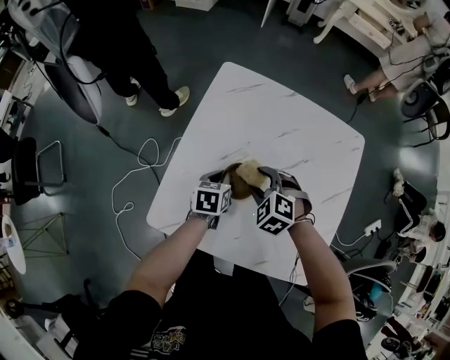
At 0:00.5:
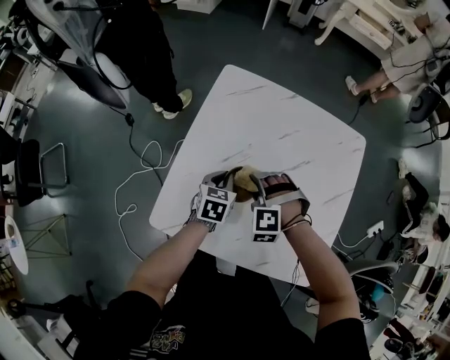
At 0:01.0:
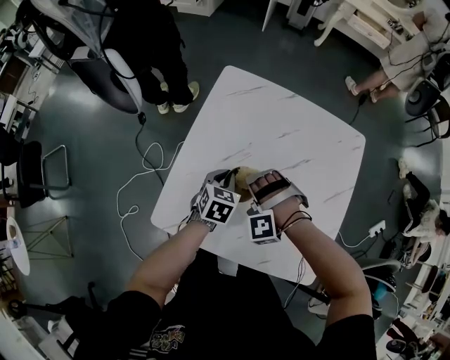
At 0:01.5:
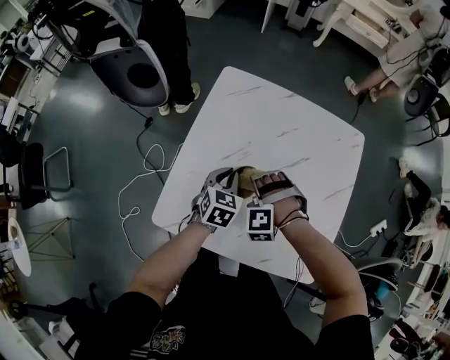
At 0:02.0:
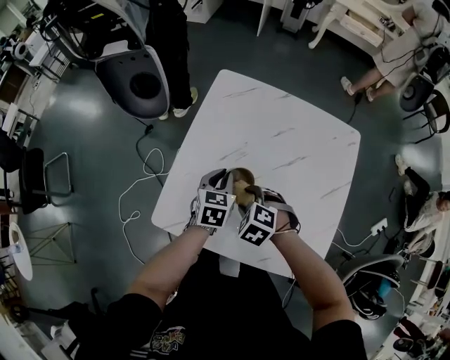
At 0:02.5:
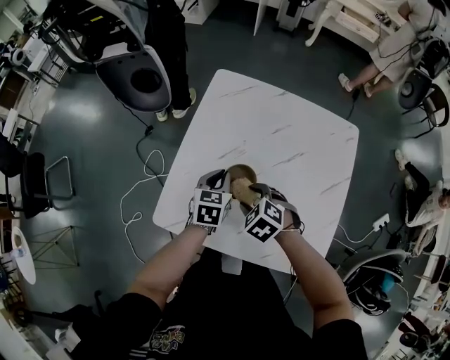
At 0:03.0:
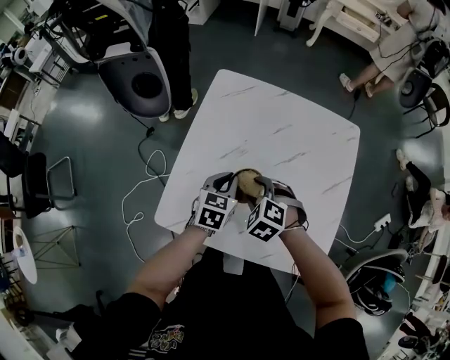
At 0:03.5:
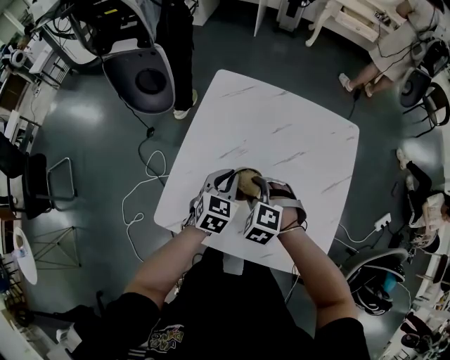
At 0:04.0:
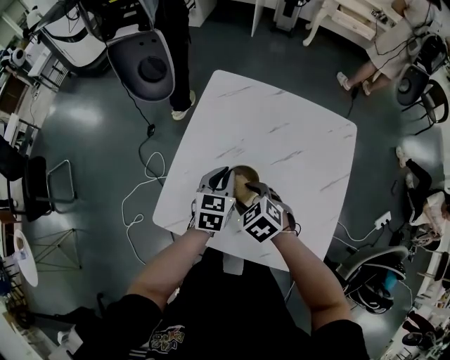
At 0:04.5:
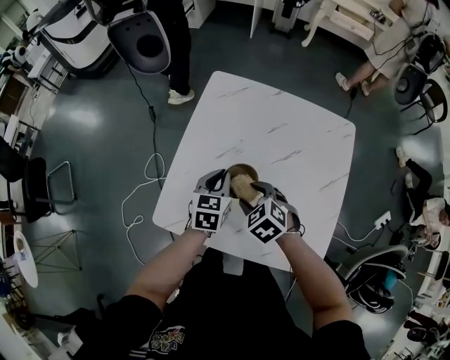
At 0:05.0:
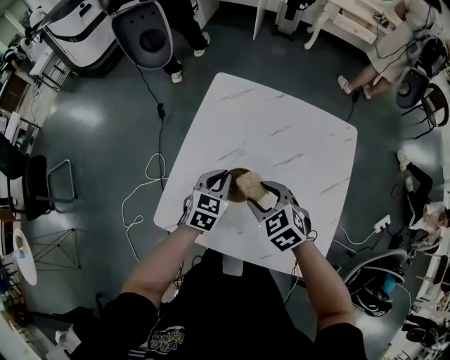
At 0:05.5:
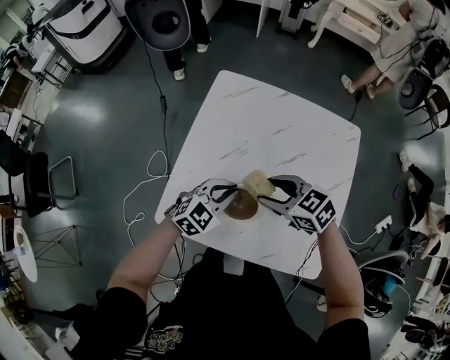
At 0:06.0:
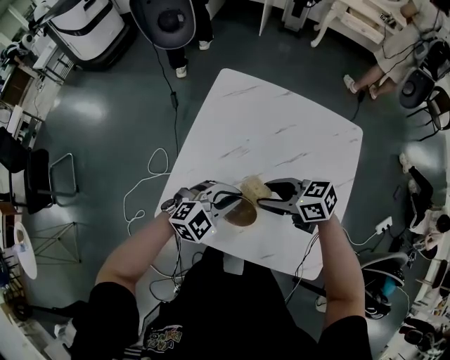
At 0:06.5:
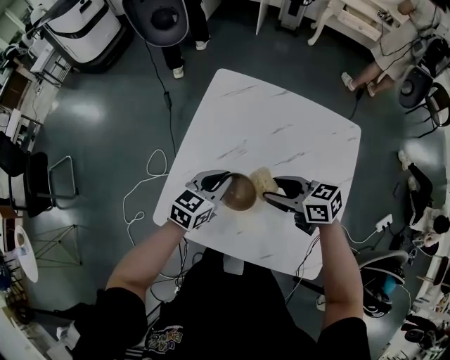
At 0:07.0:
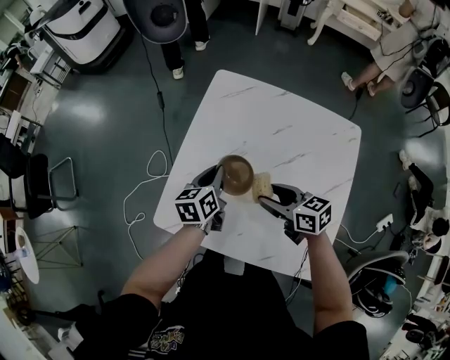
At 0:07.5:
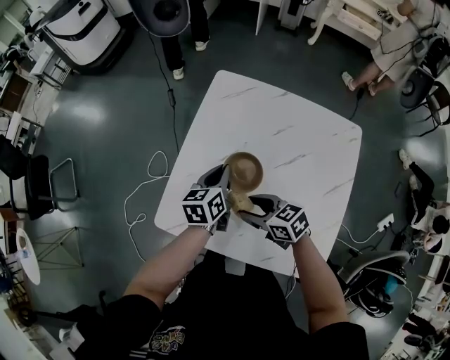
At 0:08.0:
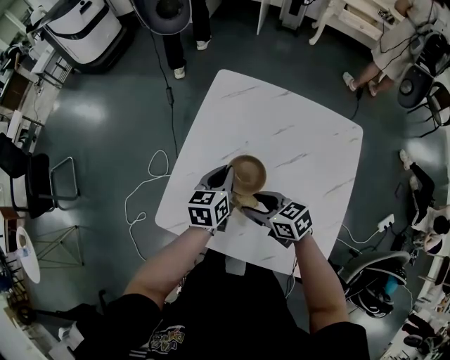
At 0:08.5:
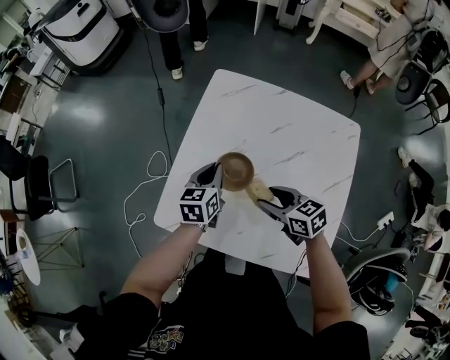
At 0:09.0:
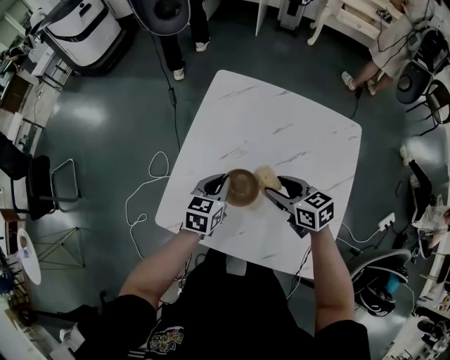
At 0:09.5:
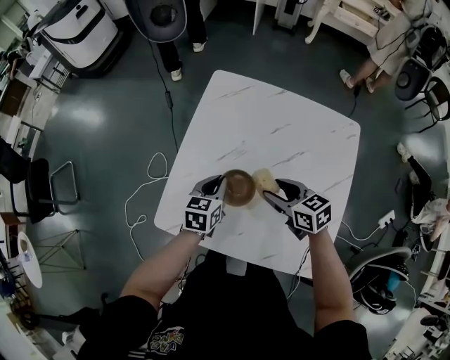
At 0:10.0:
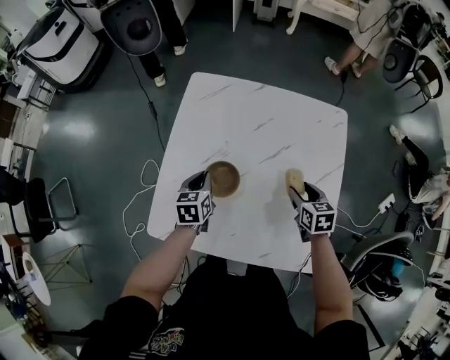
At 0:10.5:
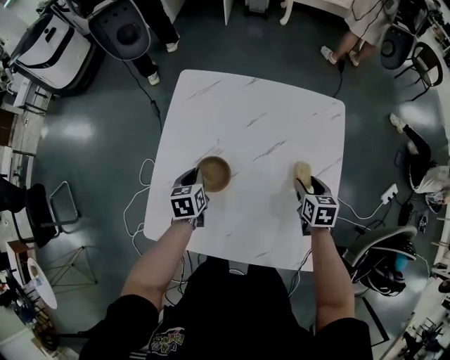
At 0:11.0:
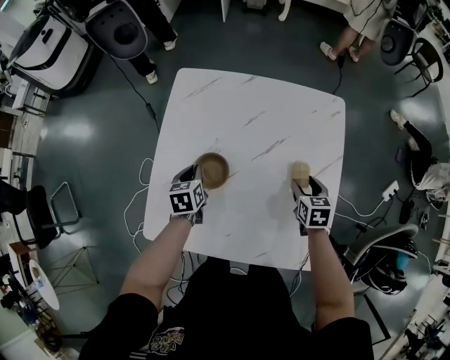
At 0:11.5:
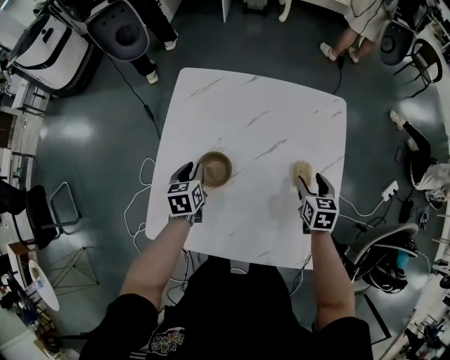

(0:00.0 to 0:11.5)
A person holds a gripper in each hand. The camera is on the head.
0:00.0 - 0:02.0: The left gripper moves upward, approximately 5 cm. Meanwhile the right gripper goes roughly 5 cm backward.
0:02.0 - 0:04.0: The right gripper changes its angle by about 20 degrees.
0:04.0 - 0:06.0: The left gripper shifts by about 10 cm, and twists about 50 degrees clockwise, seen from behind; the right gripper is displaced upward by roughly 5 cm, and tips its fingers upward by some 30 degrees.
0:06.0 - 0:07.5: The left gripper shifts by roughly 10 cm, and rotates around the line of its fingers by some 70 degrees, counterclockwise from behind. Meanwhile the right gripper is displaced downward by roughly 5 cm.
0:07.5 - 0:09.5: The right gripper heads to the right, covering roughly 10 cm. Meanwhile the left gripper ends up roughly 5 cm from where it was.
0:09.5 - 0:11.5: The left gripper is displaced forward and downward by approximately 10 cm. Meanwhile the right gripper moves to the right, some 20 cm, and changes its angle by some 50 degrees.

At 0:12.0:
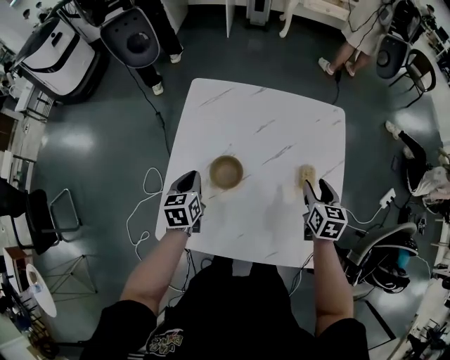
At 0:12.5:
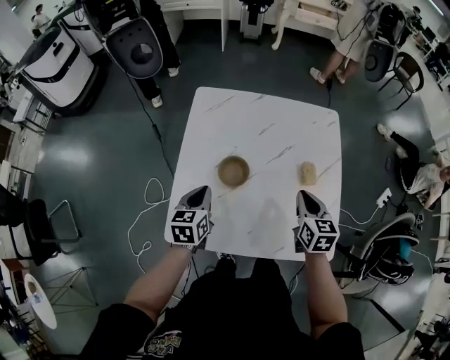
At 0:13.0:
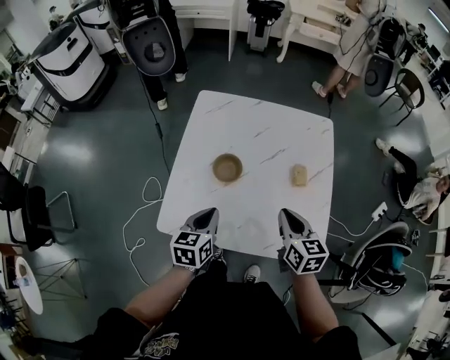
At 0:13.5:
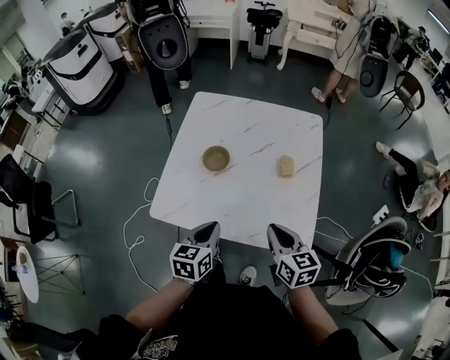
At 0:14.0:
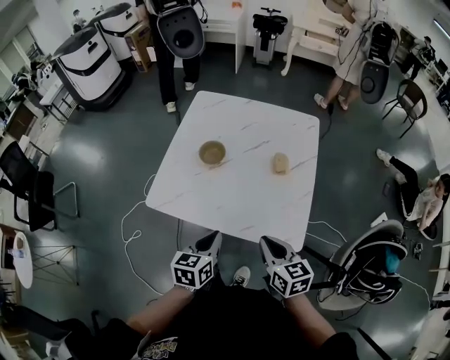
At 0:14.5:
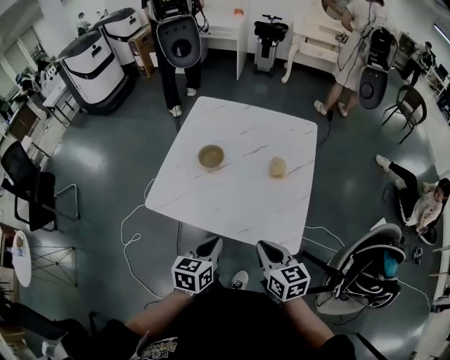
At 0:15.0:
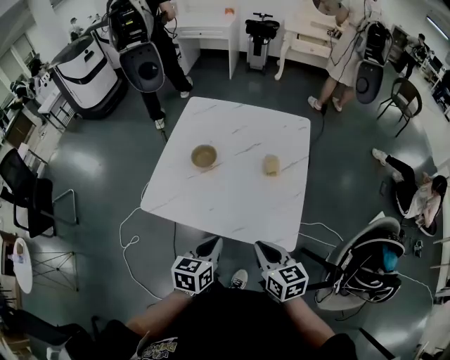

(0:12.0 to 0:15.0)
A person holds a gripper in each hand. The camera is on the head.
0:12.0 - 0:13.5: The left gripper goes roughly 30 cm backward and to the right. Meanwhile the right gripper is displaced backward by roughly 25 cm, changes its angle by approximately 20 degrees, and closes.
0:13.5 - 0:15.0: The right gripper shifts roughly 10 cm backward. Meanwhile the left gripper heads backward and to the right, covering some 10 cm.

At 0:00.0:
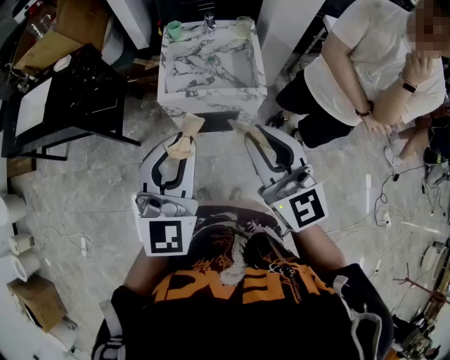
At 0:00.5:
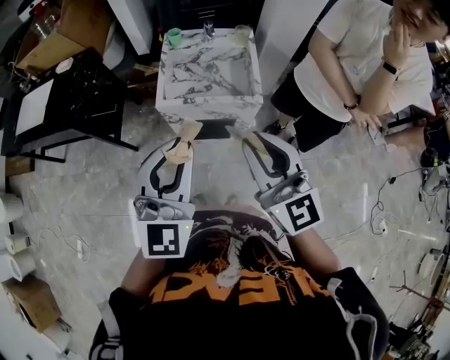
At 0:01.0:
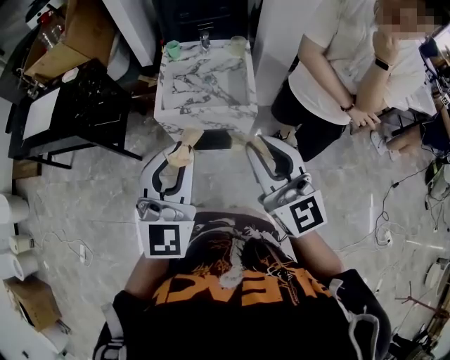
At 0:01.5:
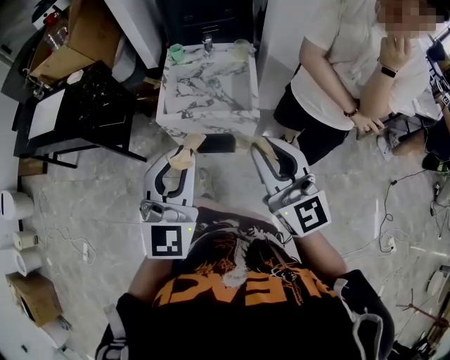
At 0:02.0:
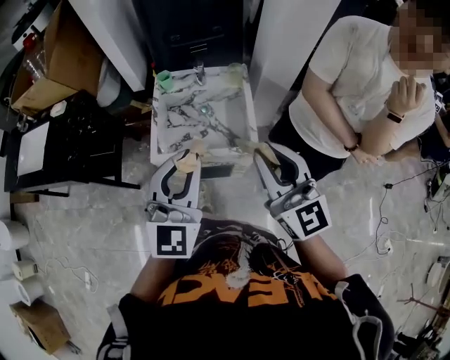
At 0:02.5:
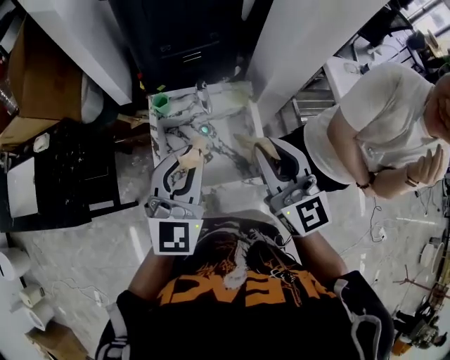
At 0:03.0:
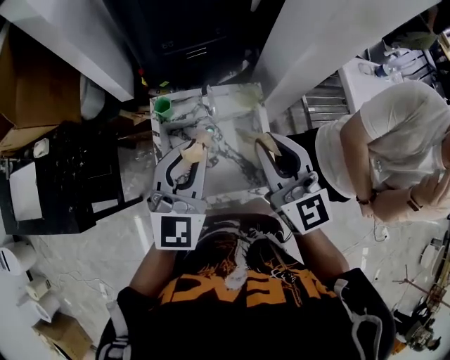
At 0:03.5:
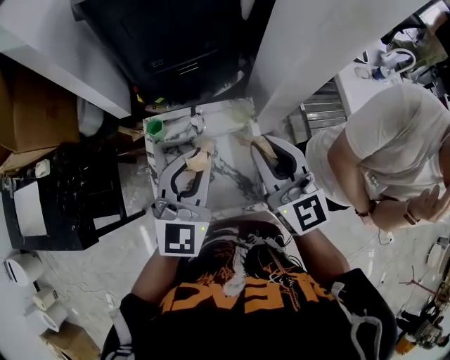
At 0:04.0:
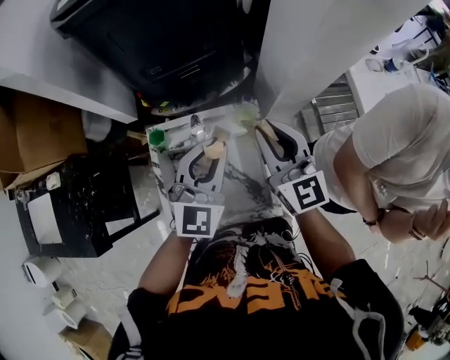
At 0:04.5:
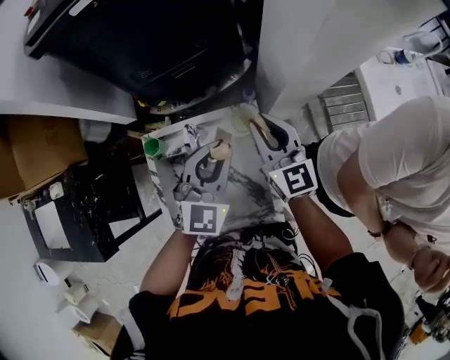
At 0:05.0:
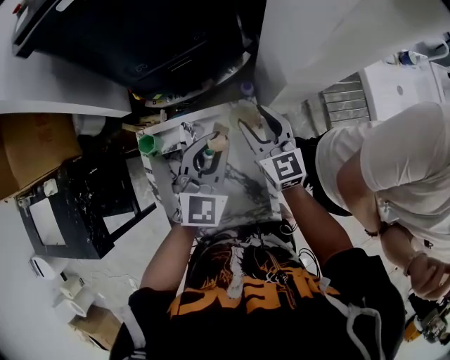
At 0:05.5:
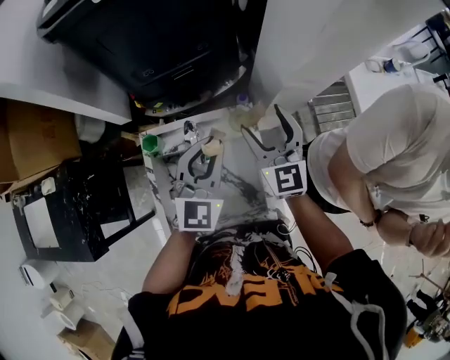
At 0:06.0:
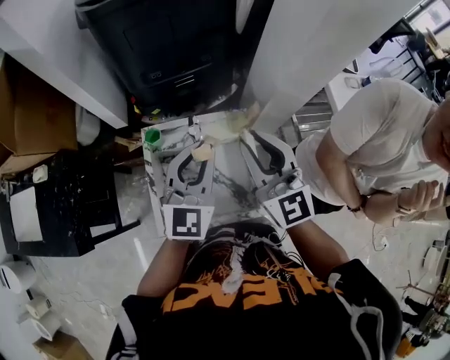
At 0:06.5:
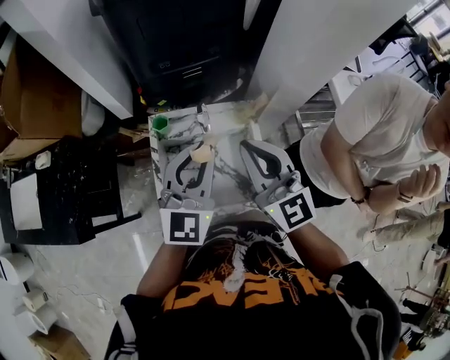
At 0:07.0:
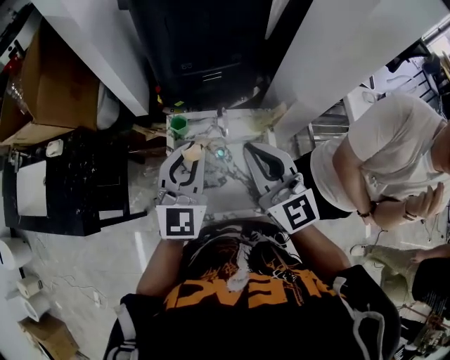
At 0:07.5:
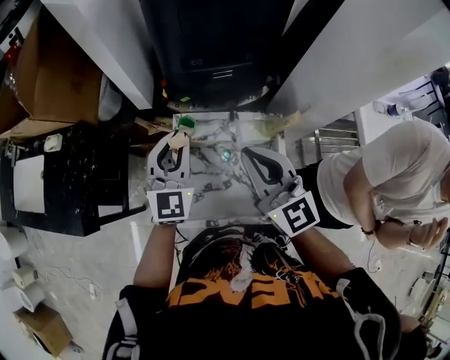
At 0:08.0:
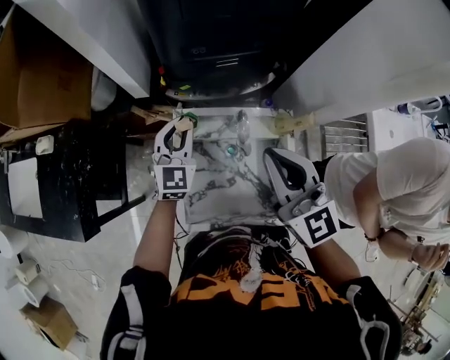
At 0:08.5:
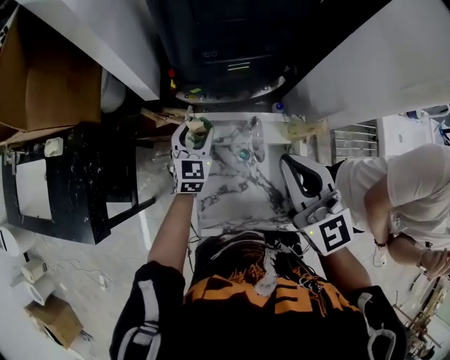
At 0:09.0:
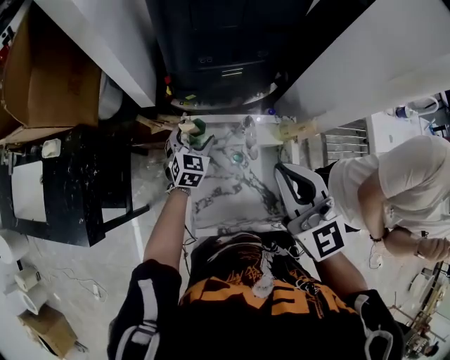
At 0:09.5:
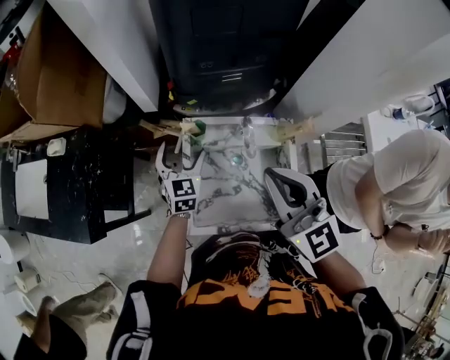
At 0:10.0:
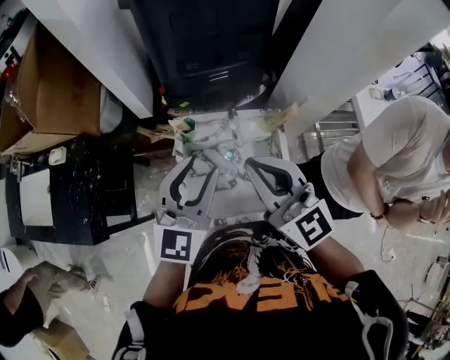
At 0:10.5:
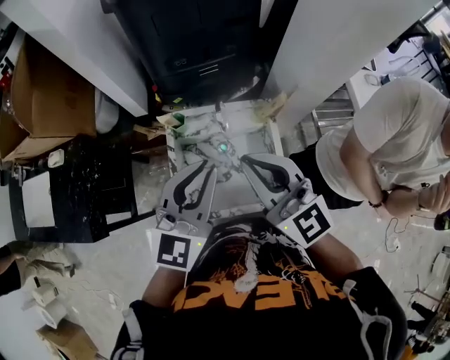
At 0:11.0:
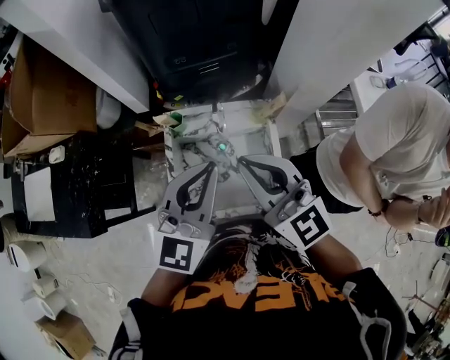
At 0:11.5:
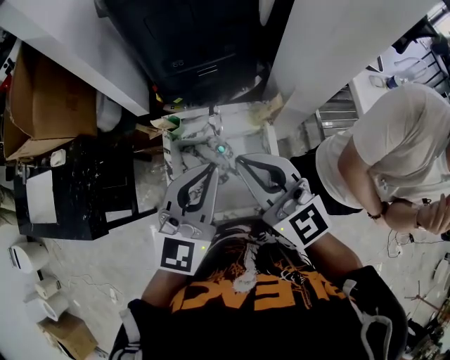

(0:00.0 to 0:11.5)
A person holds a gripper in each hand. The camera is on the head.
0:00.0 - 0:02.0: The two grippers go about 15 cm forward and to the right.
0:02.0 - 0:04.0: The grippers both shift forward by approximately 40 cm.
0:04.0 - 0:06.0: The left gripper moves upward, approximately 5 cm, while the right gripper goes approximately 10 cm backward and to the left, reaches about 15 cm downward, then returns, and opens, then closes again.
0:06.0 - 0:07.5: Both grippers move to the left, approximately 15 cm.
0:07.5 - 0:09.5: The left gripper heads downward, covering approximately 15 cm, turns by about 20 degrees, and opens its fingers.
0:09.5 - 0:11.5: The right gripper heads to the right, covering some 5 cm, while the left gripper goes approximately 35 cm upward, to the right and backward, swivels roughly 30 degrees, and closes its fingers.
